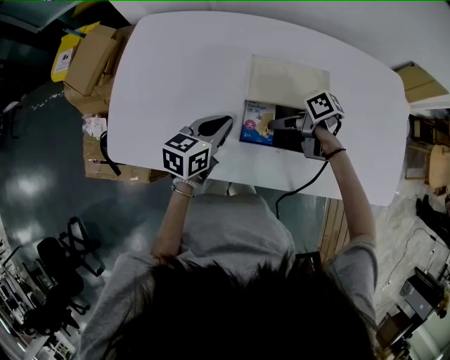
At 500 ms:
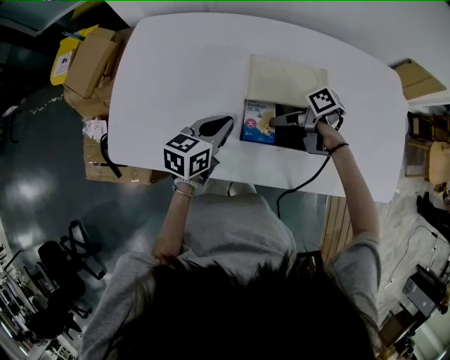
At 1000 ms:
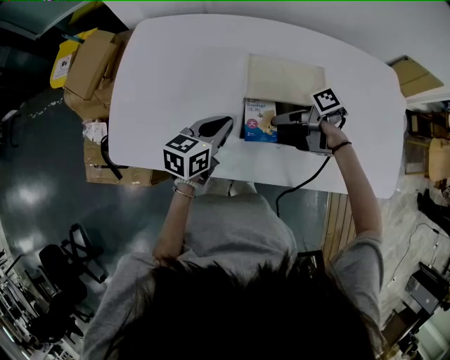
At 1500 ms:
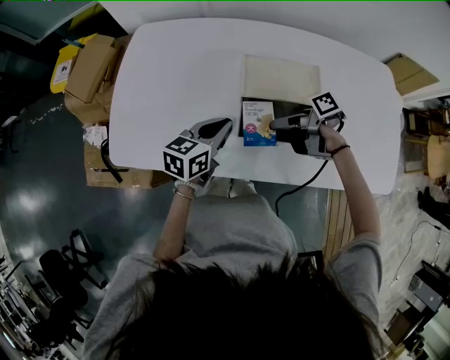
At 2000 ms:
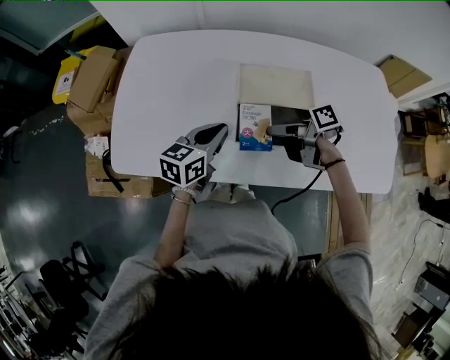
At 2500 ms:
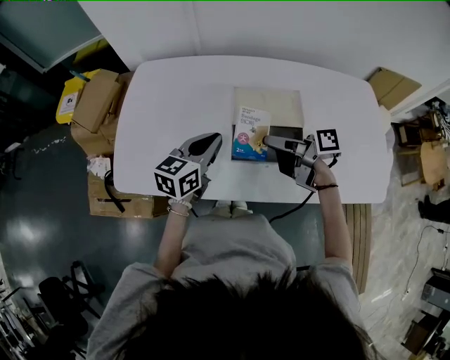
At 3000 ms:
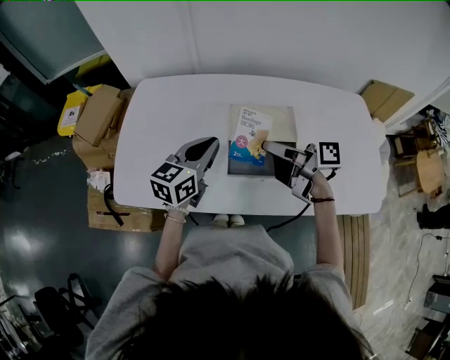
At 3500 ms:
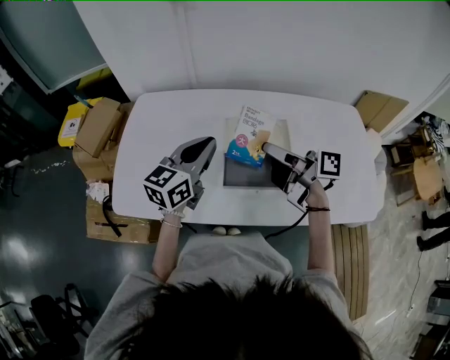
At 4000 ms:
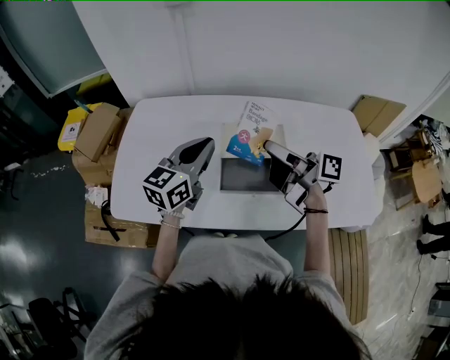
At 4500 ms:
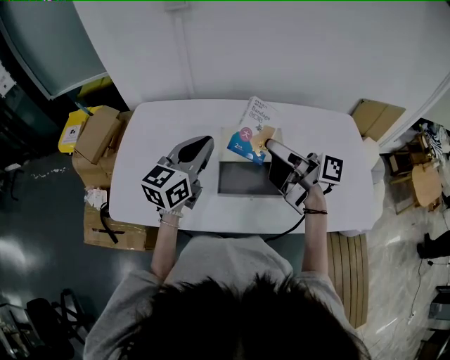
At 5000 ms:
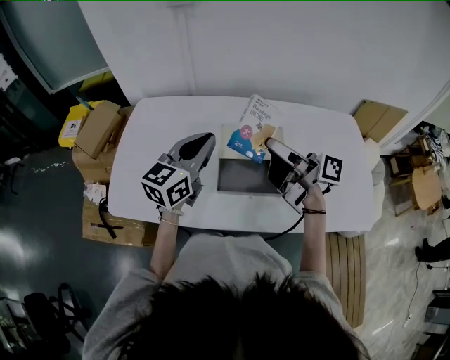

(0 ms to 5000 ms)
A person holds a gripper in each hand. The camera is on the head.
0 ms - 2500 ms: Both grippers move upward, roughly 10 cm. The right gripper swivels about 30 degrees.
2500 ms - 5000 ms: The two grippers go some 15 cm upward. The right gripper swivels some 30 degrees.

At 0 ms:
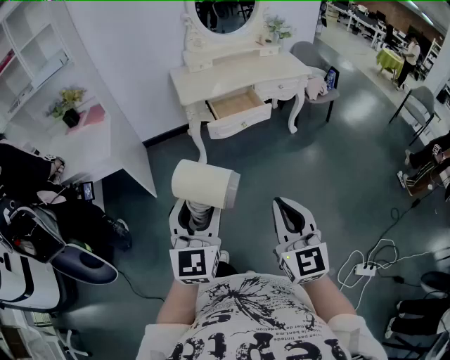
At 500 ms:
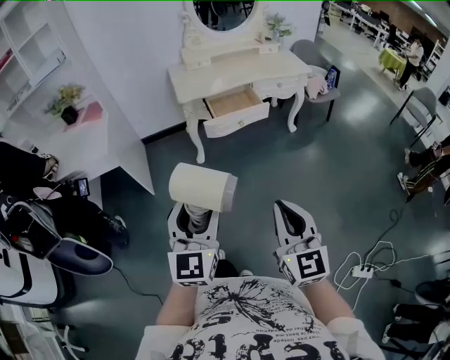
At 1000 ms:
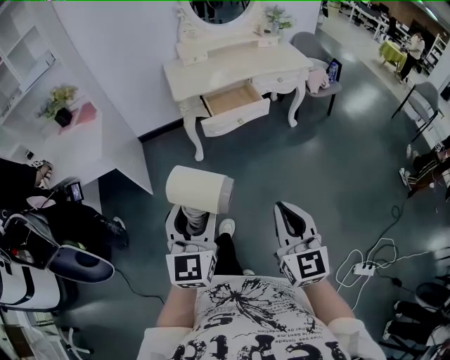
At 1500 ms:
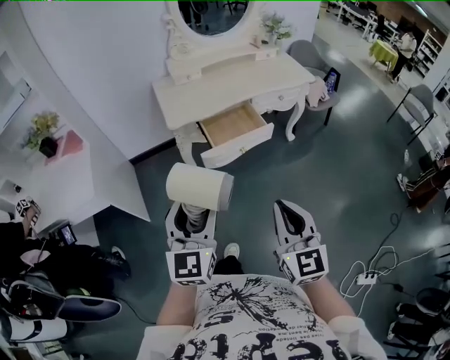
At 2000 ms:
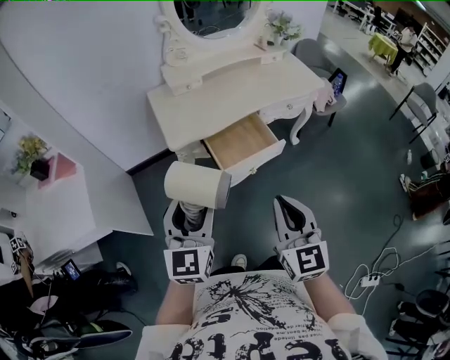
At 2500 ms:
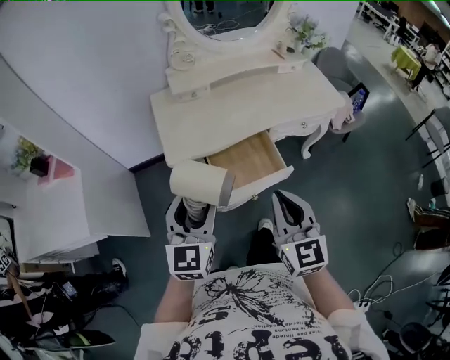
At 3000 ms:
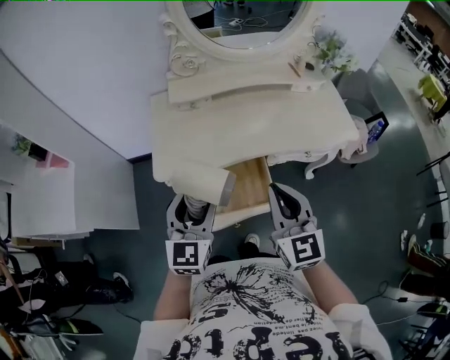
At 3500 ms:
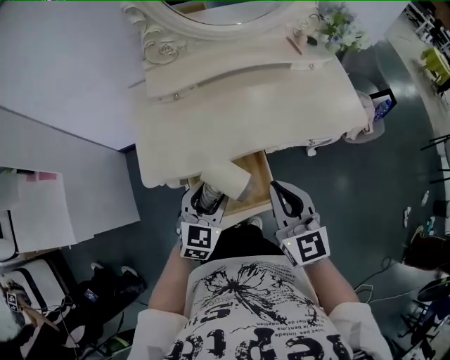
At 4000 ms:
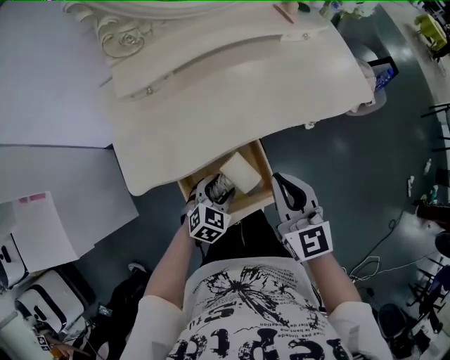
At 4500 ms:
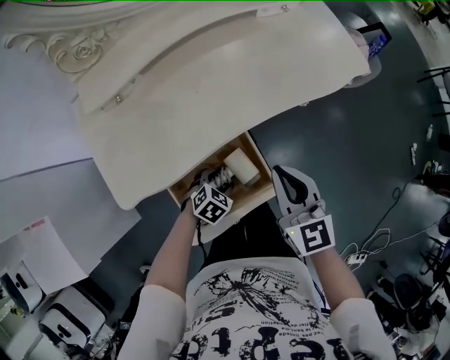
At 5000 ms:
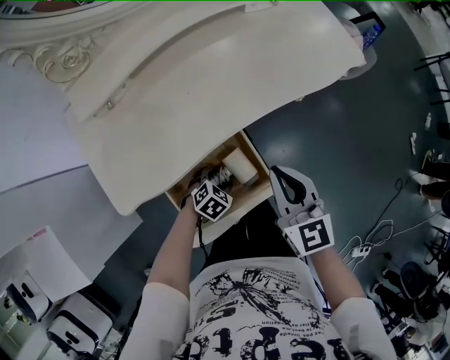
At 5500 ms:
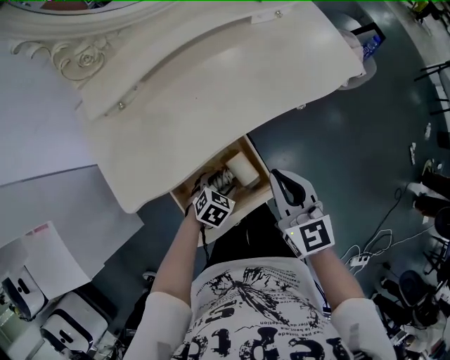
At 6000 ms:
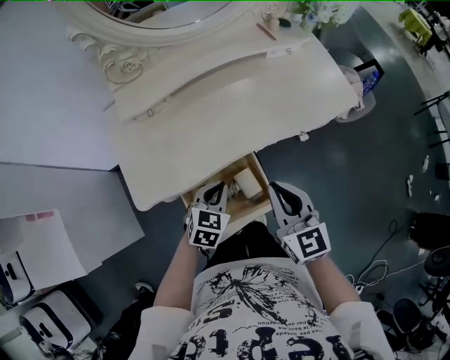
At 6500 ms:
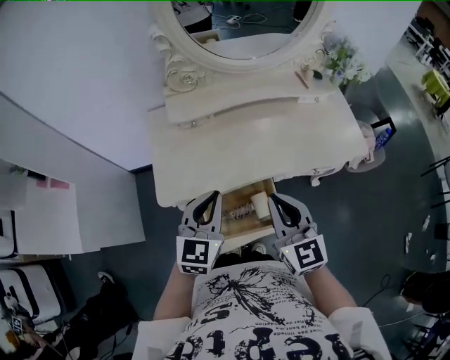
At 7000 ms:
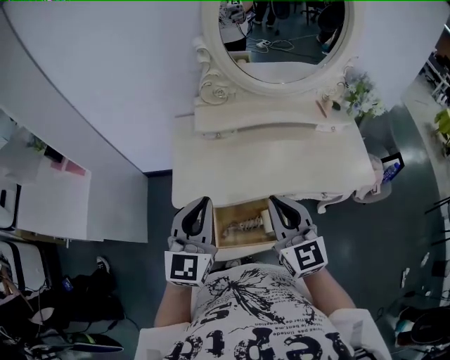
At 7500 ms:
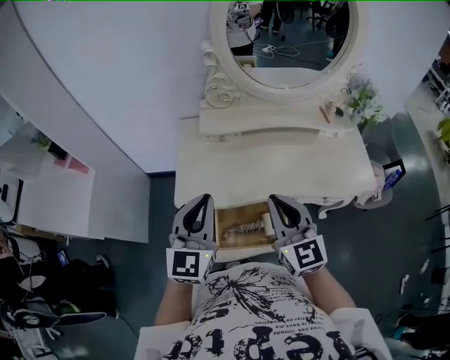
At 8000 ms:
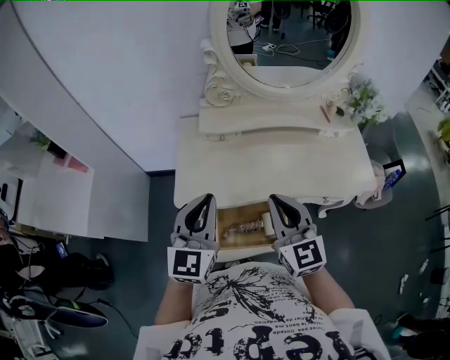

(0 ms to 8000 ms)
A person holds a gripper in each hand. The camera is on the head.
0 ms - 2000 ms: Both grippers move forward, approximately 40 cm.
2000 ms - 4000 ms: The left gripper goes about 50 cm downward, forward and to the right, and angles its fingers downward, by roughly 40 degrees; the right gripper goes roughly 40 cm forward.
4000 ms - 6000 ms: The left gripper reaches roughly 15 cm downward, then returns, and closes.
6000 ms - 8000 ms: The left gripper travels upward by about 25 cm, and angles its fingers upward, by roughly 40 degrees; the right gripper moves upward, about 15 cm, and rotates approximately 20 degrees.

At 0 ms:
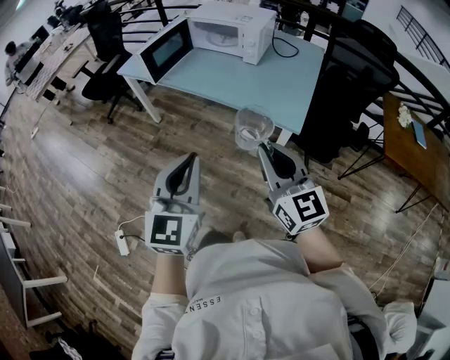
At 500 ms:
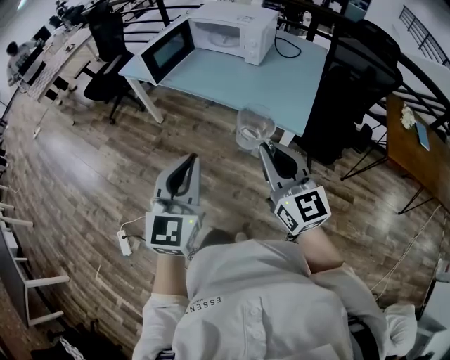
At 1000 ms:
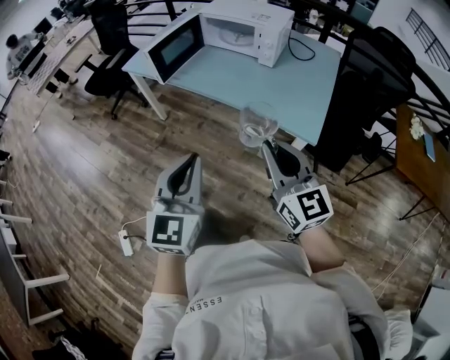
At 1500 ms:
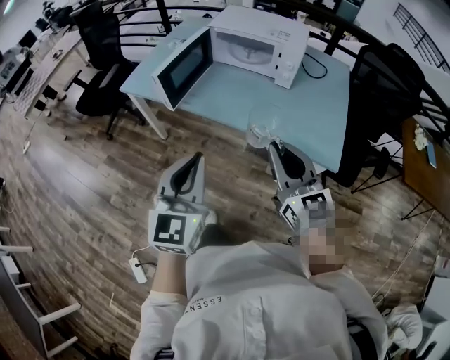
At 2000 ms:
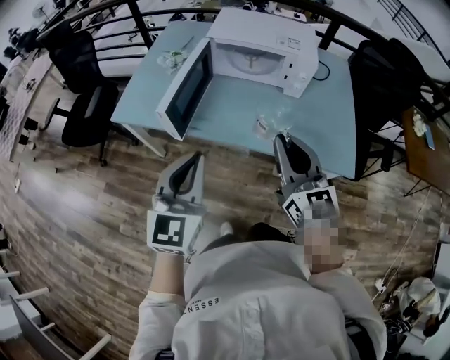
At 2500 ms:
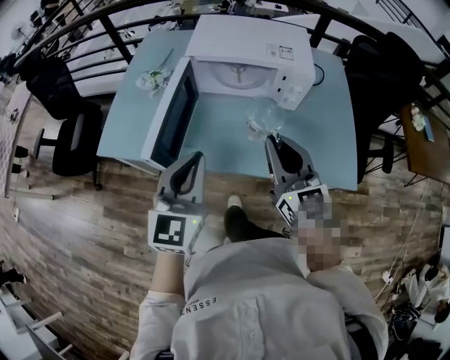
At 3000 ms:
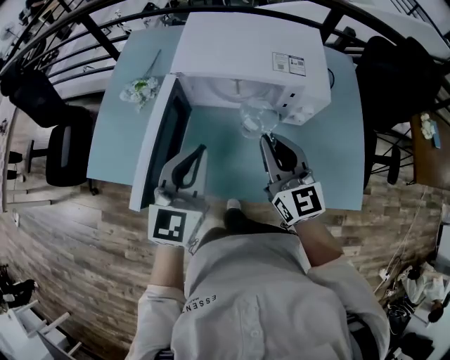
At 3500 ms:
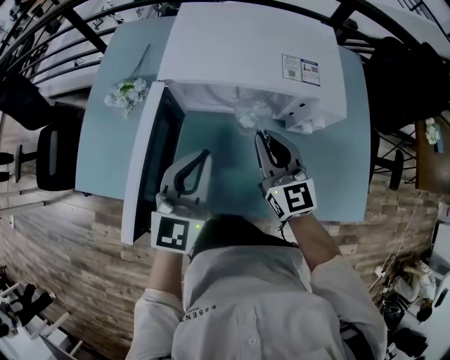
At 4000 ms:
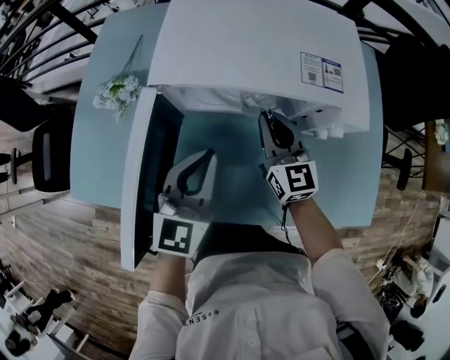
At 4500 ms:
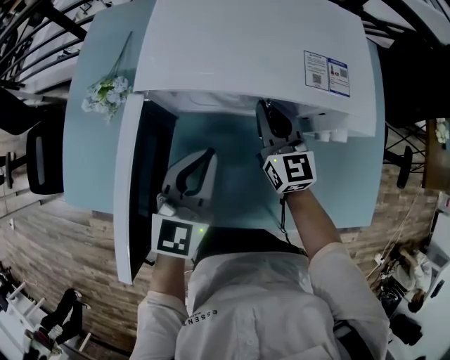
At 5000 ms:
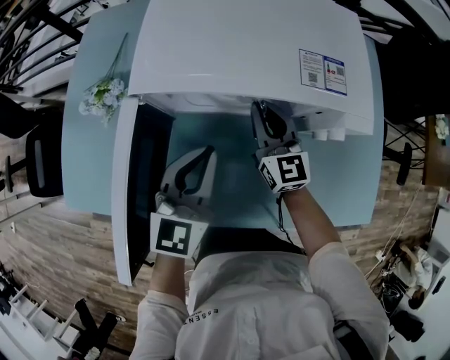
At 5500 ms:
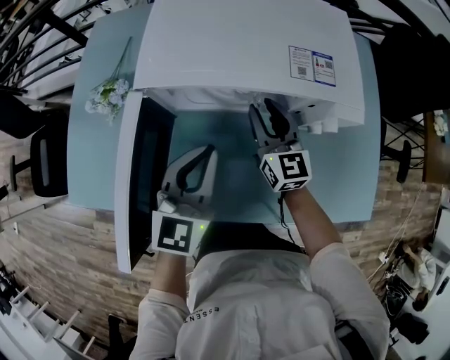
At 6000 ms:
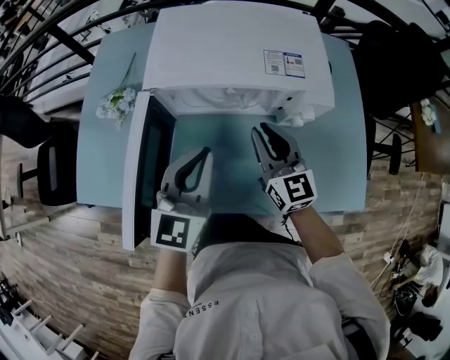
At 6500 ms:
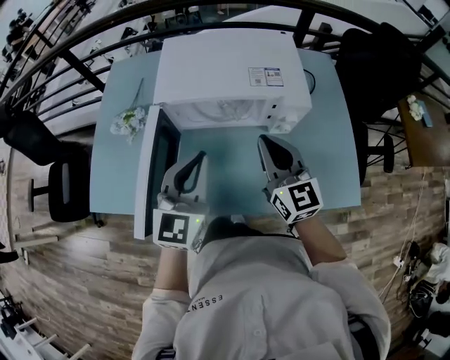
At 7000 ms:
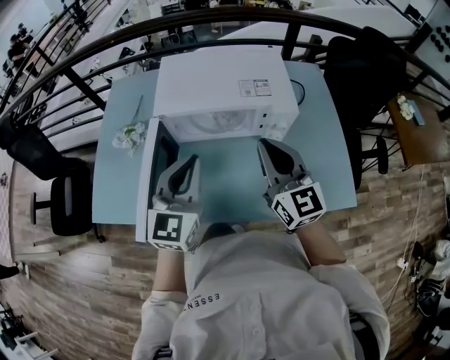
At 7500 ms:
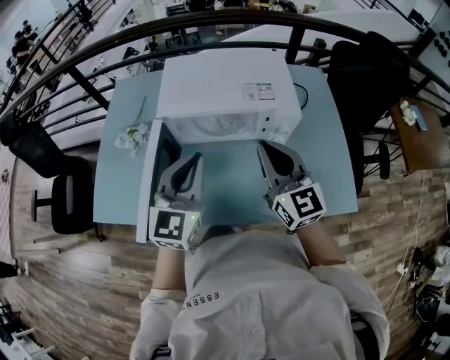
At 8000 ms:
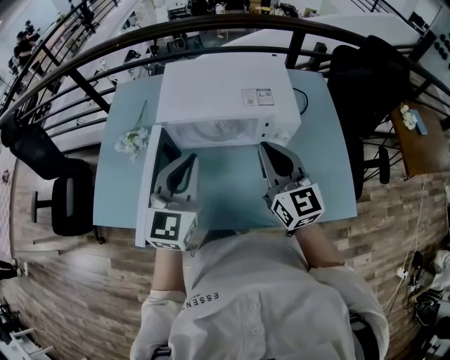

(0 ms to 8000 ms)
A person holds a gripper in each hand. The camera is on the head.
0 ms - 2000 ms: The two grippers travel together, forward and to the left, about 40 cm.
2000 ms - 4000 ms: Both grippers travel together forward and downward, about 40 cm.
4000 ms - 6000 ms: The left gripper shifts some 5 cm upward; the right gripper shifts some 10 cm backward and upward.
6000 ms - 8000 ms: The right gripper travels upward and backward by about 15 cm. Meanwhile the left gripper moves upward, some 10 cm.

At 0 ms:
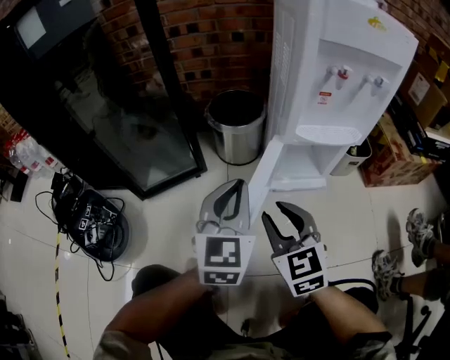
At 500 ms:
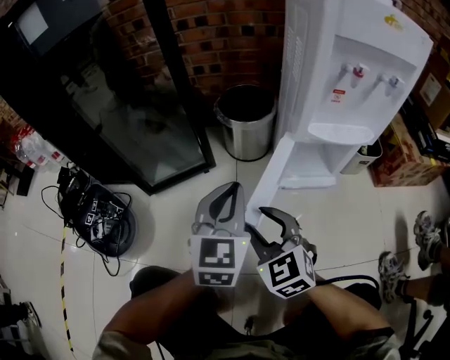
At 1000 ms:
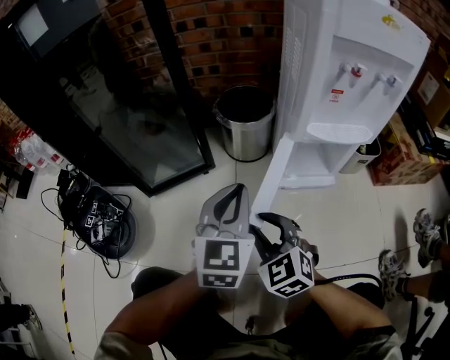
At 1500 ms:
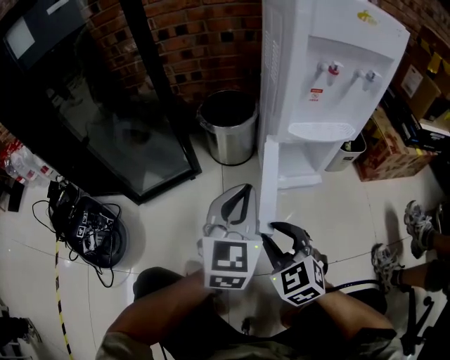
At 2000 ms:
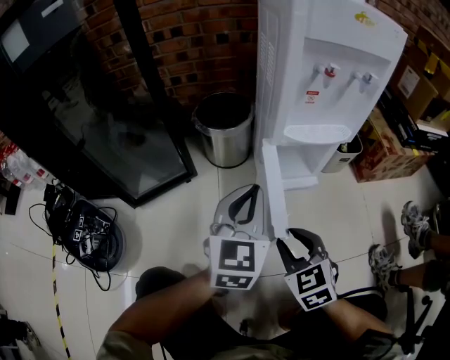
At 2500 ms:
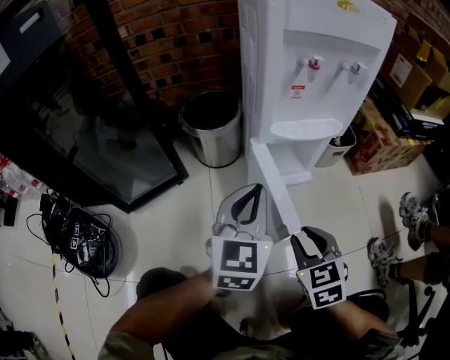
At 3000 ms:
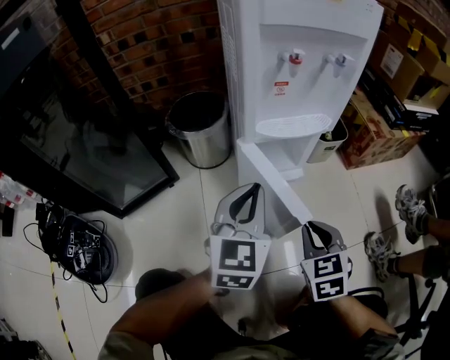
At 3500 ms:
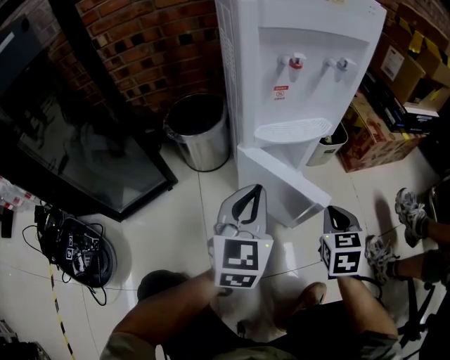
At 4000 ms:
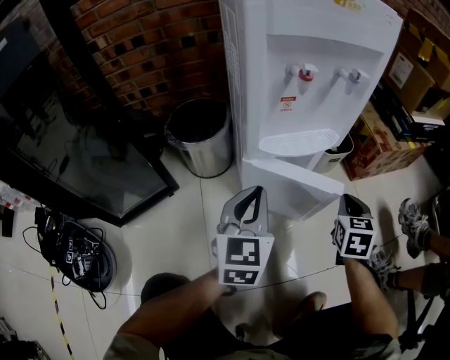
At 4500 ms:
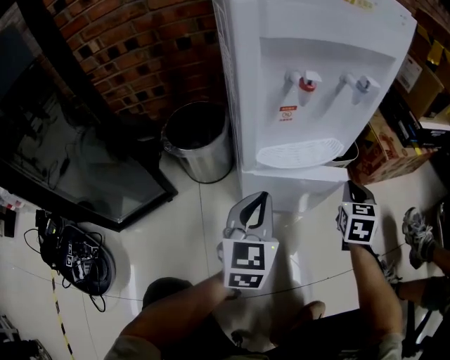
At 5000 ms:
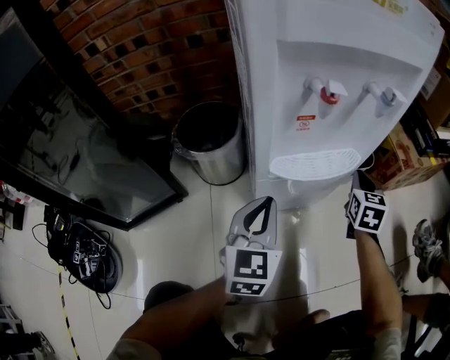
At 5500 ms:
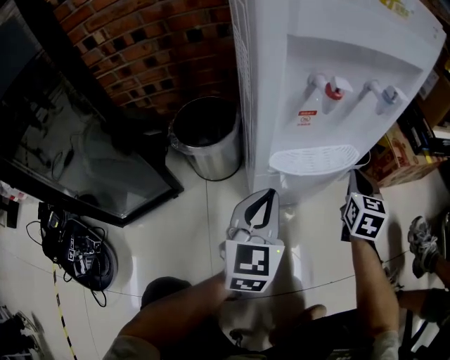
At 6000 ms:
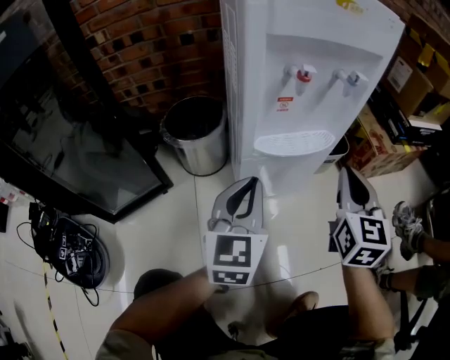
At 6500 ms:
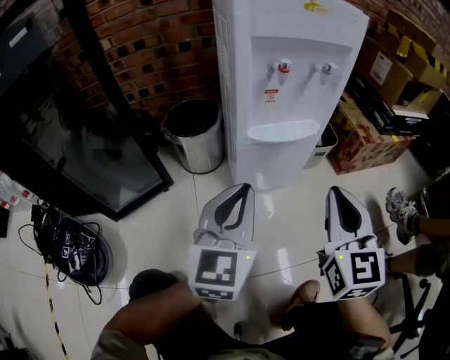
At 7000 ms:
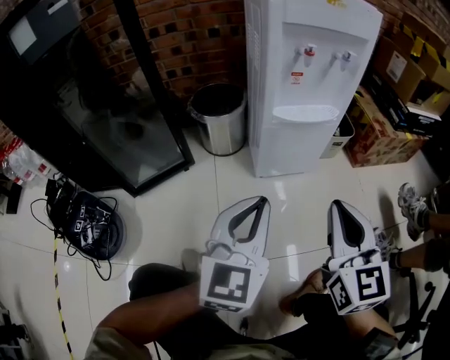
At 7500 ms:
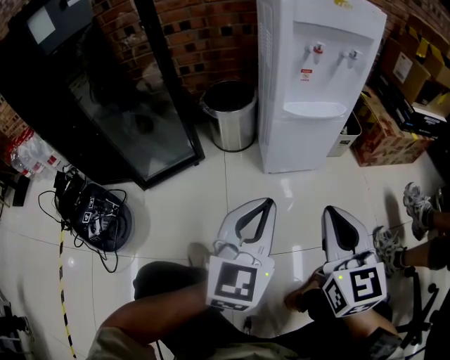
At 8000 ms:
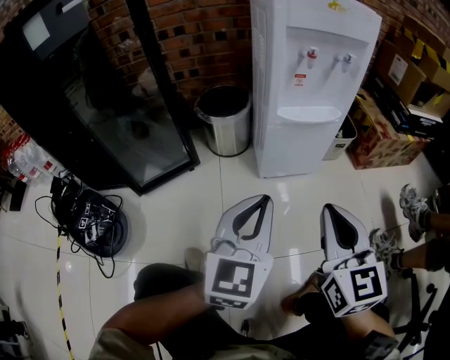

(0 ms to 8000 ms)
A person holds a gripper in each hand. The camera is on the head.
0 ms - 2000 ms: The right gripper moves downward, backward and to the right, about 10 cm, while the left gripper moves to the right, approximately 5 cm.
2000 ms - 4000 ms: The left gripper is displaced forward and to the right by some 10 cm; the right gripper is displaced to the right and forward by roughly 30 cm, turns by roughly 40 degrees, and closes its fingers.
4000 ms - 6000 ms: The right gripper shifts roughly 15 cm upward and to the left, and turns by about 30 degrees.
6000 ms - 8000 ms: The left gripper goes about 20 cm backward; the right gripper goes some 25 cm backward and to the left.
